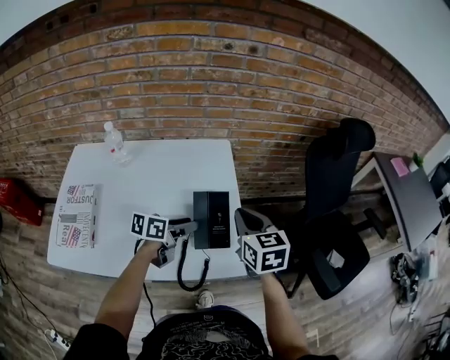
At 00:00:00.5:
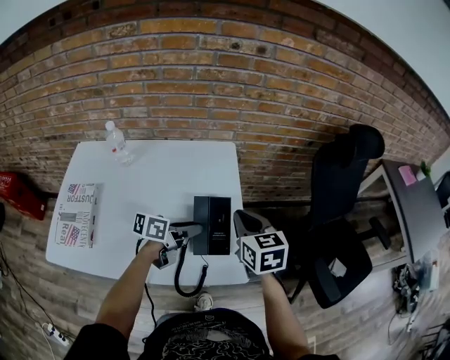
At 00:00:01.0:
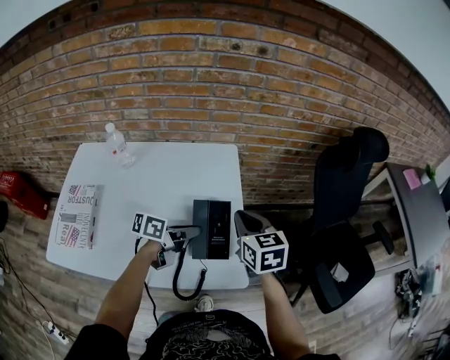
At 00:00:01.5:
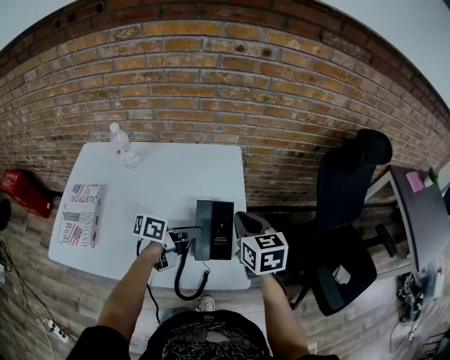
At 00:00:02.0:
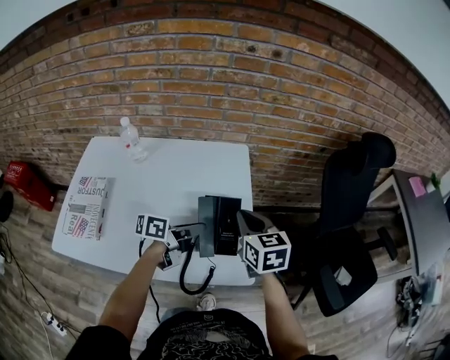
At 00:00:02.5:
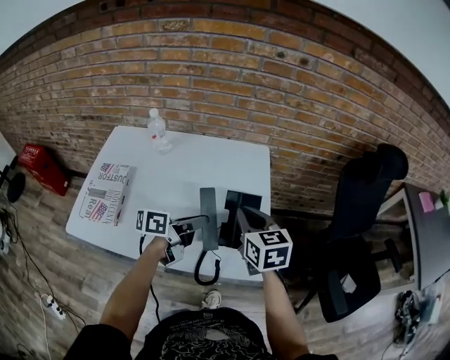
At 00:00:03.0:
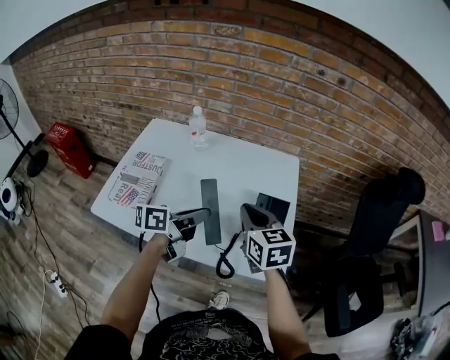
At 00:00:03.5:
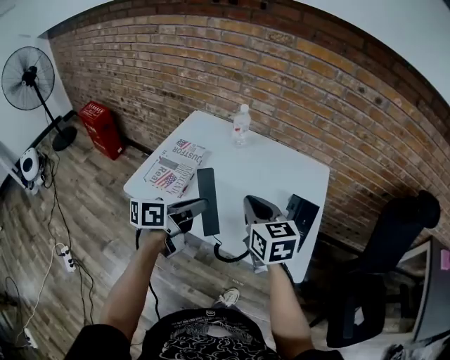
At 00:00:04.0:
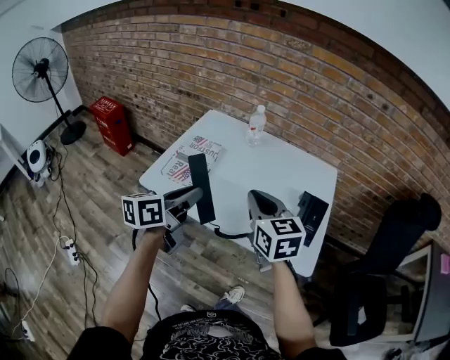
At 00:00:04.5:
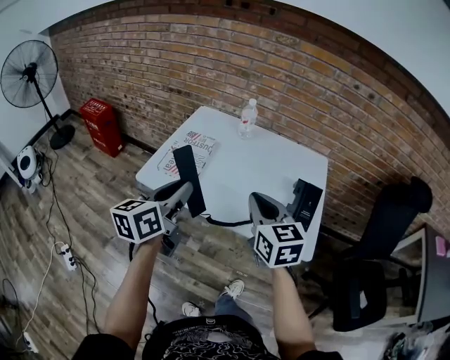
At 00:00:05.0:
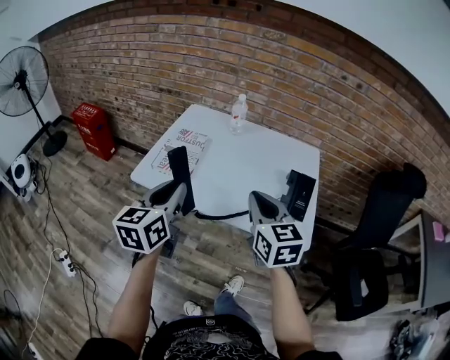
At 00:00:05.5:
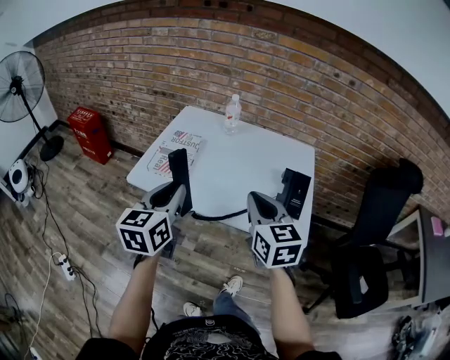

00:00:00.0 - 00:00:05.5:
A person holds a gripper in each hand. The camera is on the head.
00:00:00.0 - 00:00:02.0: The left gripper closes its fingers.
00:00:02.0 - 00:00:03.5: The left gripper changes place by roughly 30 cm, and turns by about 30 degrees. The right gripper ends up some 25 cm from where it was, and rotates some 30 degrees.
00:00:03.5 - 00:00:05.5: The left gripper is displaced backward, to the left and upward by approximately 15 cm, and changes its angle by approximately 40 degrees, while the right gripper is displaced backward by roughly 10 cm.

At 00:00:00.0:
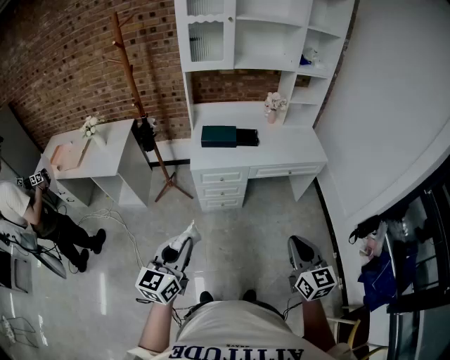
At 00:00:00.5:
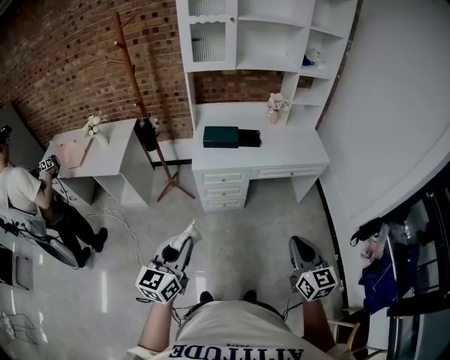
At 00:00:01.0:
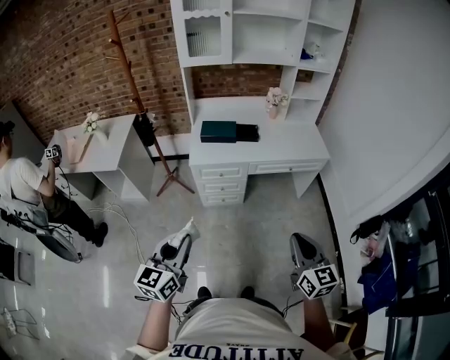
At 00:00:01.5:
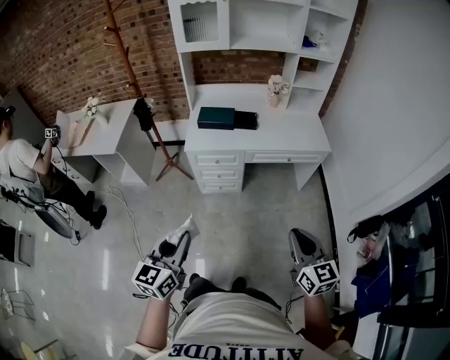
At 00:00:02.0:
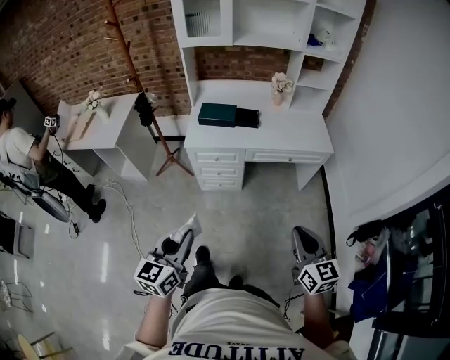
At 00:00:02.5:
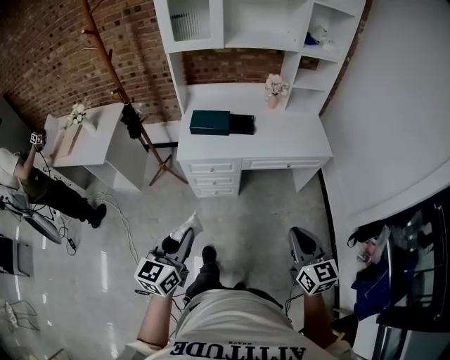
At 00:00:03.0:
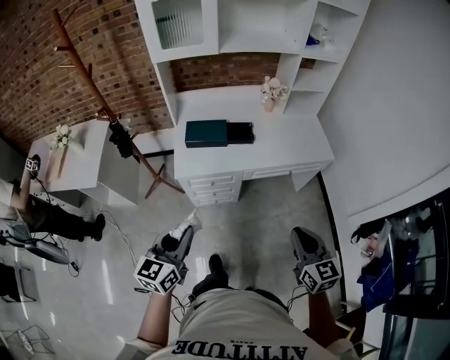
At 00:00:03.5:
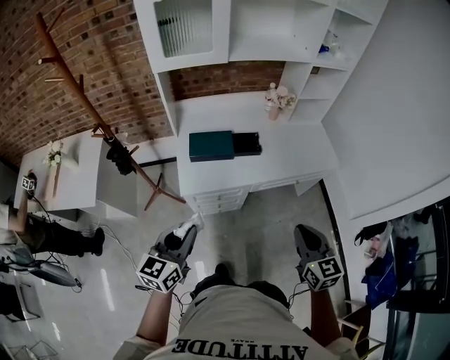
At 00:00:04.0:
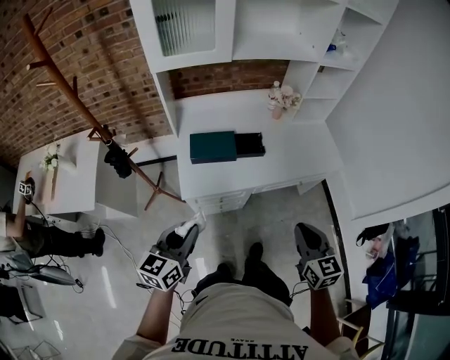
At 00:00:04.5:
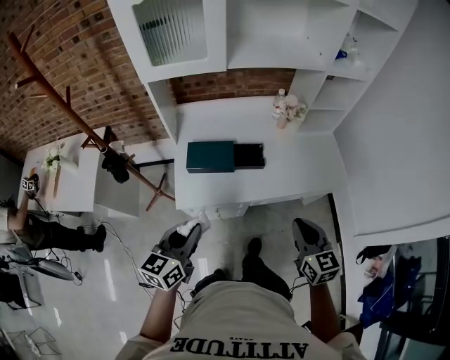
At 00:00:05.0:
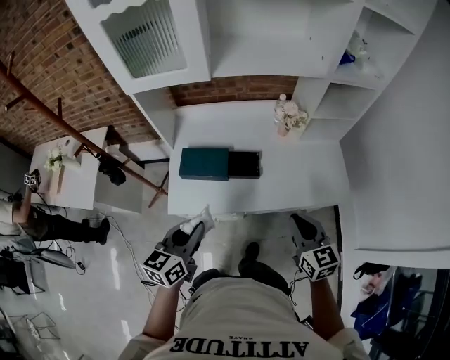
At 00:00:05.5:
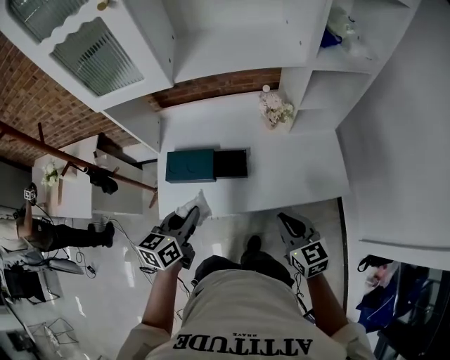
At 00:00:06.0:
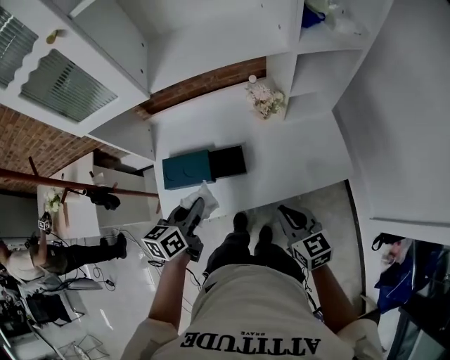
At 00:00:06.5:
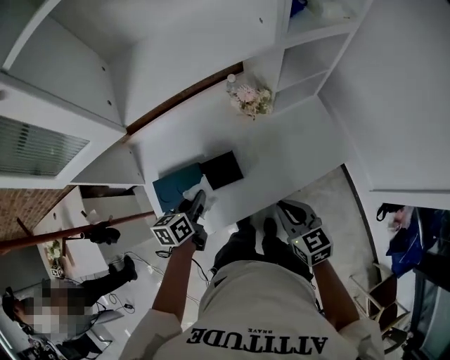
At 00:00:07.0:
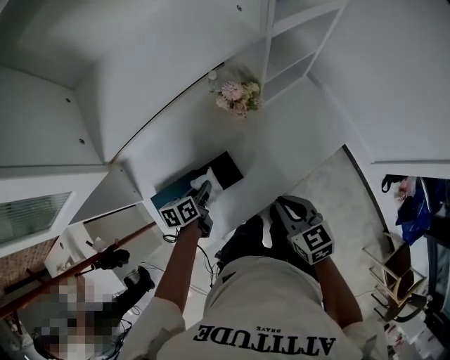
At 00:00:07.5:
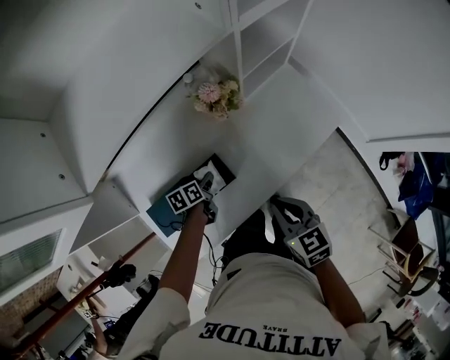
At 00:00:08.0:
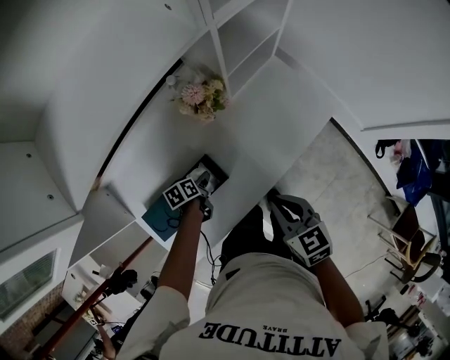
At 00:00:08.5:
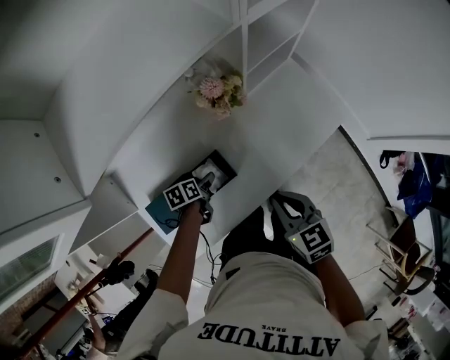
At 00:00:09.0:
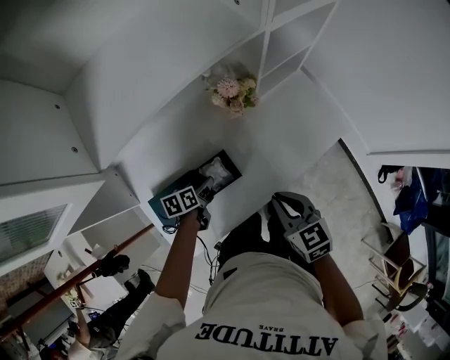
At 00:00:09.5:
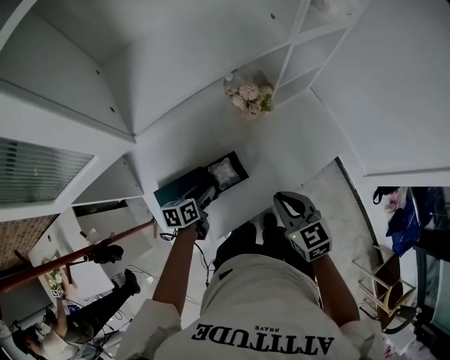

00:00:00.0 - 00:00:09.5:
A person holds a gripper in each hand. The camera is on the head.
00:00:00.0 - 00:00:02.0: Both grippers move to the right, roughly 15 cm.
00:00:02.0 - 00:00:04.0: Both grippers move forward and to the left, roughly 35 cm.
00:00:04.0 - 00:00:05.5: Both grippers move forward and to the right, roughly 25 cm.
00:00:05.5 - 00:00:07.5: The left gripper goes approximately 30 cm downward, and swivels approximately 40 degrees. The right gripper changes place by roughly 10 cm, and rotates about 30 degrees.
00:00:07.5 - 00:00:09.5: The right gripper shifts by some 5 cm. The left gripper is displaced upward, backward and to the left by about 10 cm, and opens.

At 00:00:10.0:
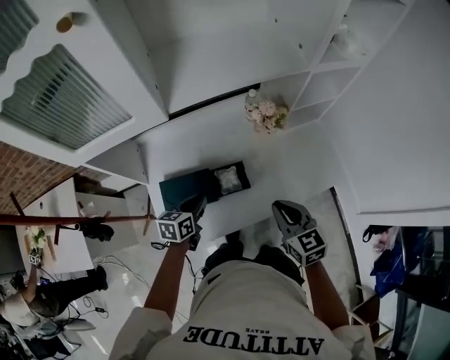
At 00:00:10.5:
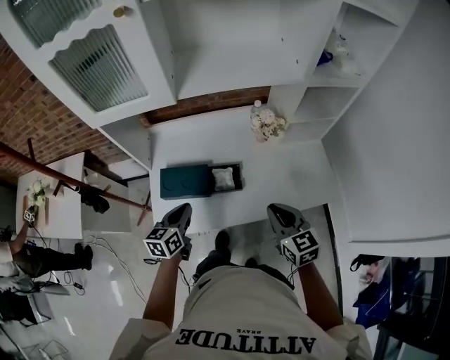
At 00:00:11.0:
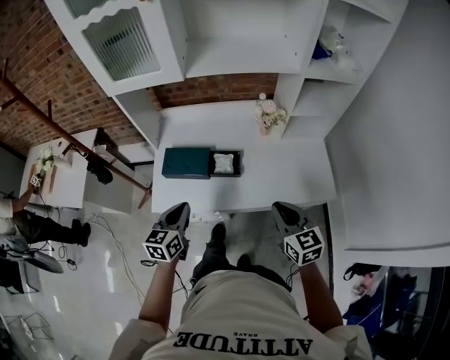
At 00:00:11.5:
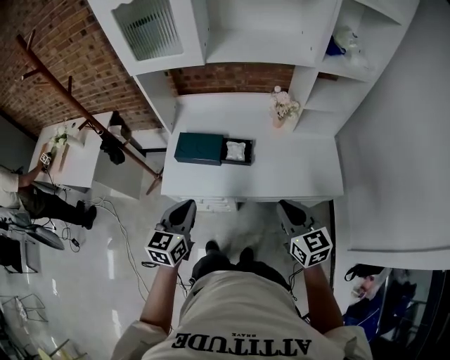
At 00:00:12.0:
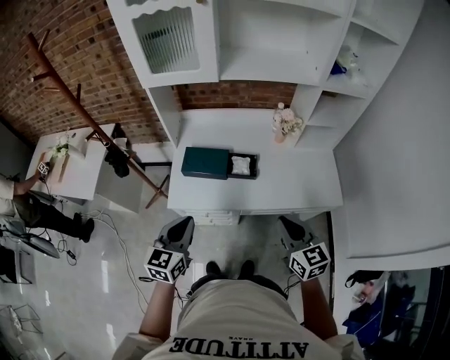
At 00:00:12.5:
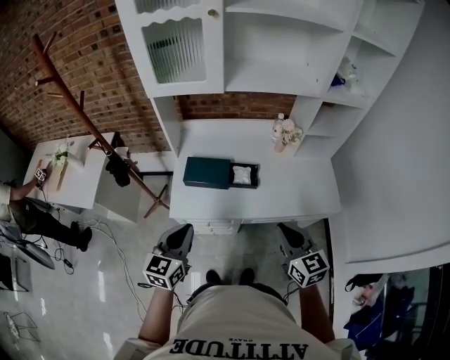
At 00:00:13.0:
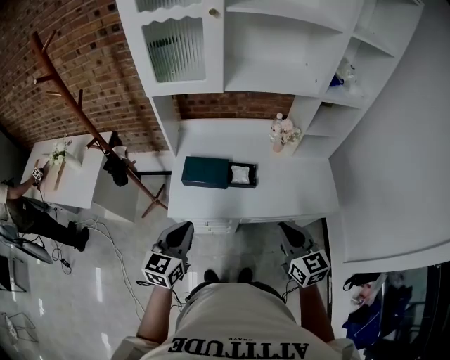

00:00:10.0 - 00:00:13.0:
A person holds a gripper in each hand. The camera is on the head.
00:00:10.0 - 00:00:11.5: The left gripper goes about 30 cm backward and upward, and turns by about 30 degrees; the right gripper travels backward and to the right by some 15 cm.
00:00:11.5 - 00:00:13.0: Both grippers move to the left, roughly 5 cm.

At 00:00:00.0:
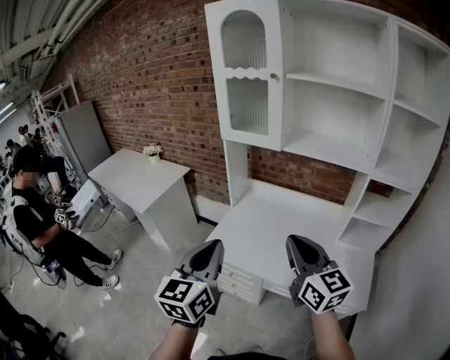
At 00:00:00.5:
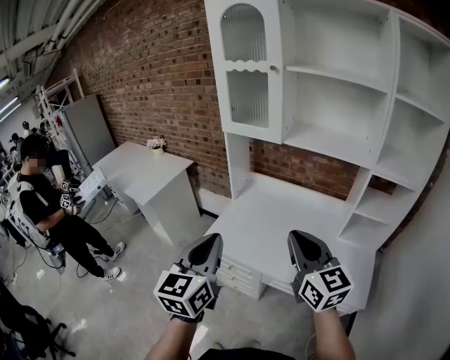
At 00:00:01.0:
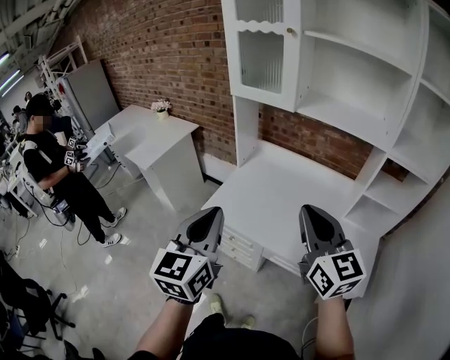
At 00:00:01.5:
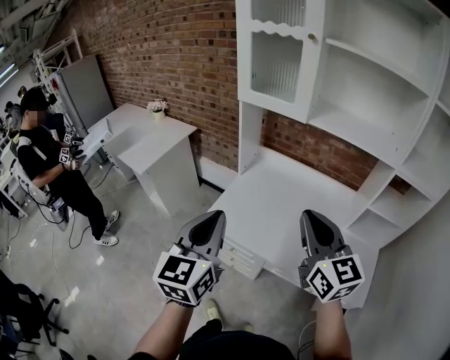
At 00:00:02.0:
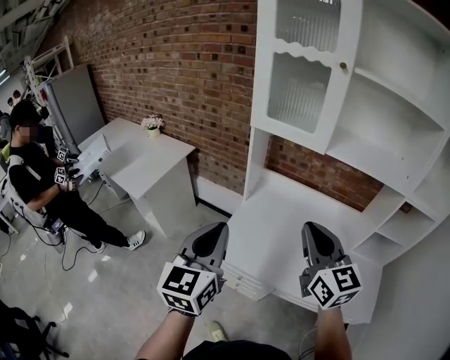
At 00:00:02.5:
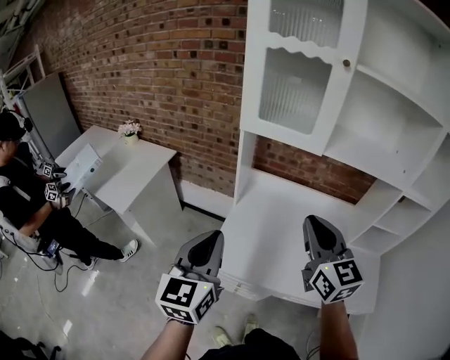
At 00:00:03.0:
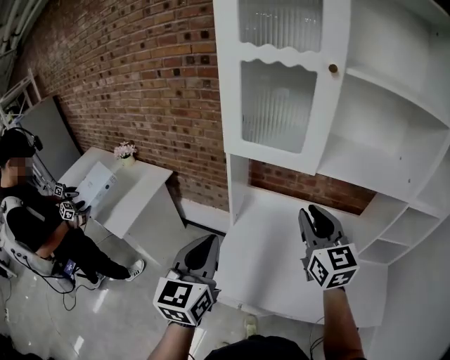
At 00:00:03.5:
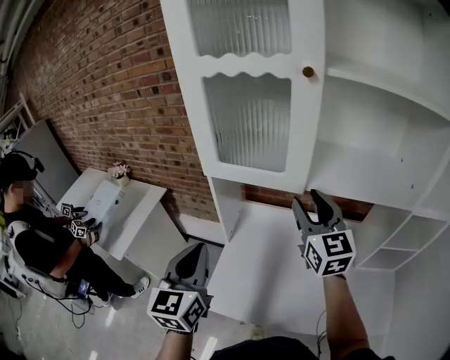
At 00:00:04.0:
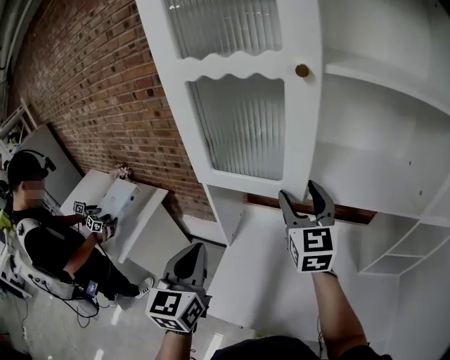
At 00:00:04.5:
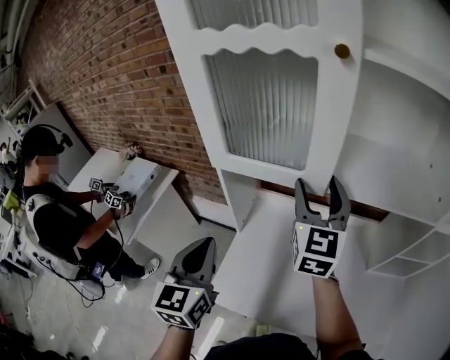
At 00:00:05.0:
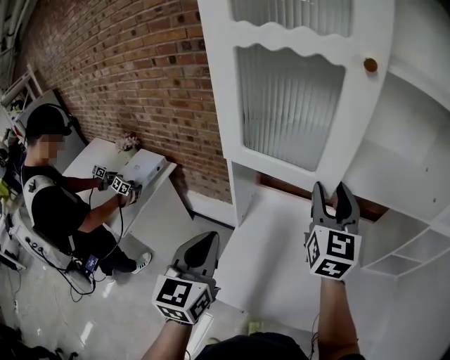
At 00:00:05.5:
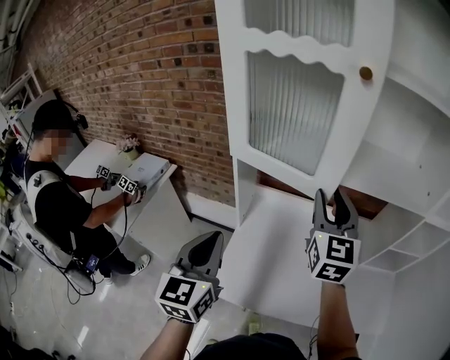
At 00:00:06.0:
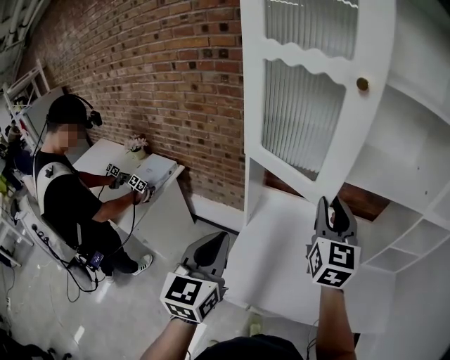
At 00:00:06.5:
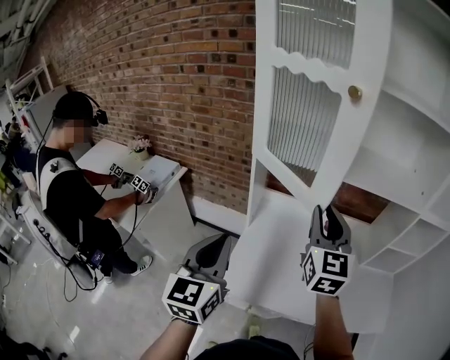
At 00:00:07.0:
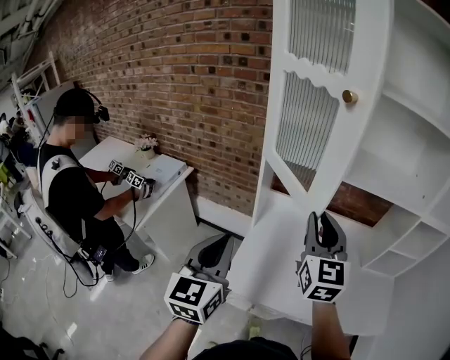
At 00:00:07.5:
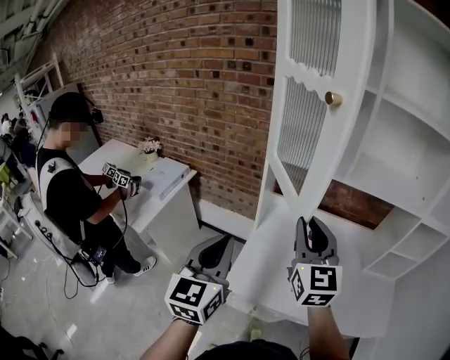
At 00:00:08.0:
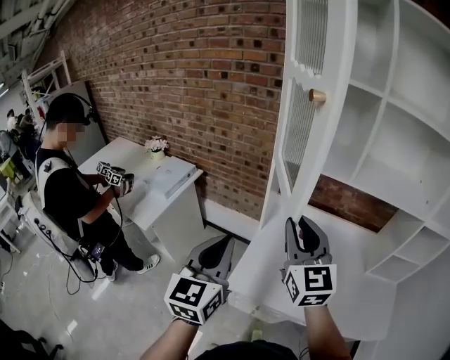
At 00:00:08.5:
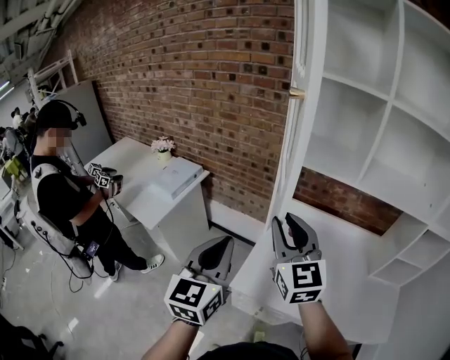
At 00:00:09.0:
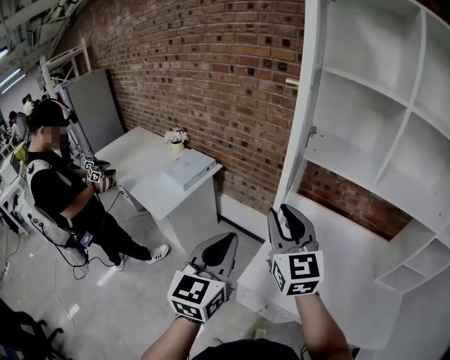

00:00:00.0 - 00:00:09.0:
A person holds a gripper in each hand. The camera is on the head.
00:00:00.0 - 00:00:02.0: The grippers both shift forward and to the left by about 20 cm.
00:00:02.0 - 00:00:04.5: Both grippers move forward, about 30 cm. The right gripper turns by about 30 degrees, and opens.
00:00:04.5 - 00:00:07.0: Both grippers move backward and to the left, about 15 cm. The right gripper closes up.
00:00:07.0 - 00:00:09.0: The right gripper moves to the left, roughly 20 cm, and turns by approximately 30 degrees. The left gripper travels to the left by roughly 5 cm.
